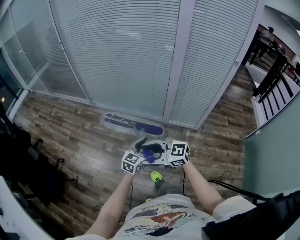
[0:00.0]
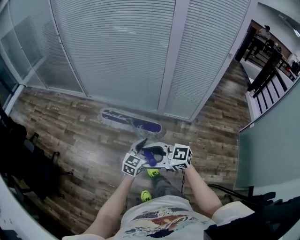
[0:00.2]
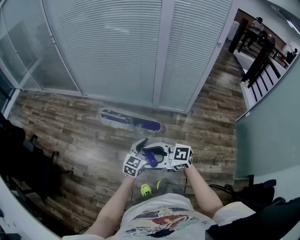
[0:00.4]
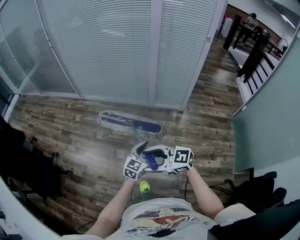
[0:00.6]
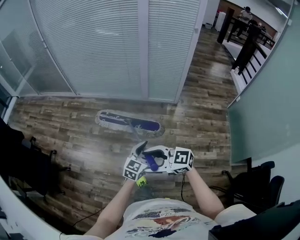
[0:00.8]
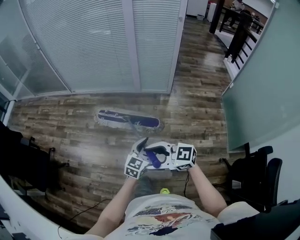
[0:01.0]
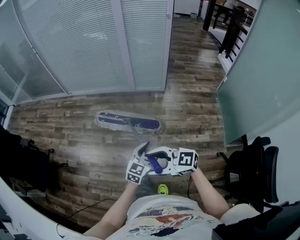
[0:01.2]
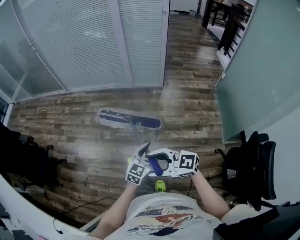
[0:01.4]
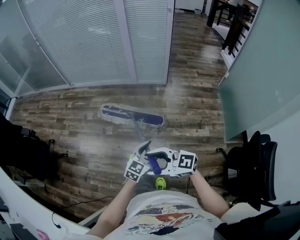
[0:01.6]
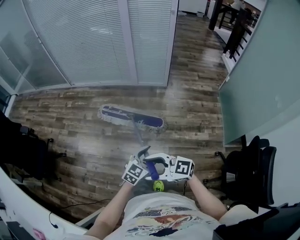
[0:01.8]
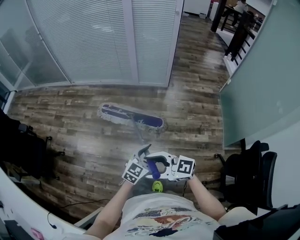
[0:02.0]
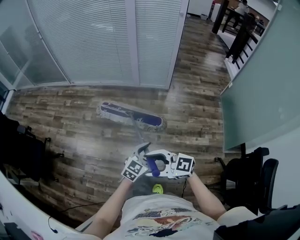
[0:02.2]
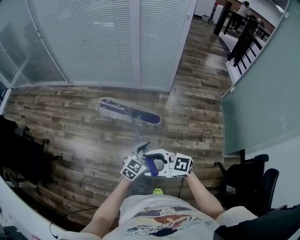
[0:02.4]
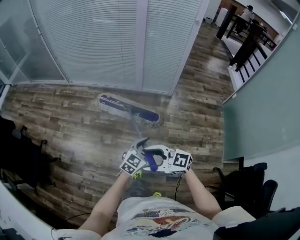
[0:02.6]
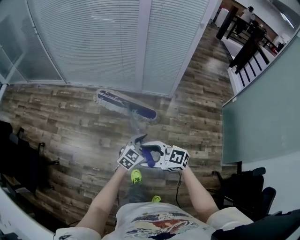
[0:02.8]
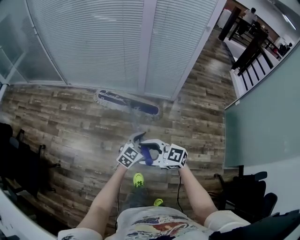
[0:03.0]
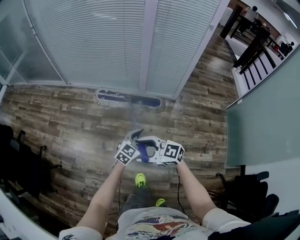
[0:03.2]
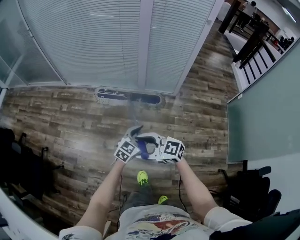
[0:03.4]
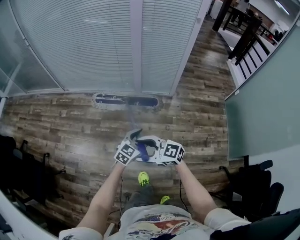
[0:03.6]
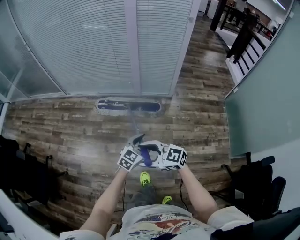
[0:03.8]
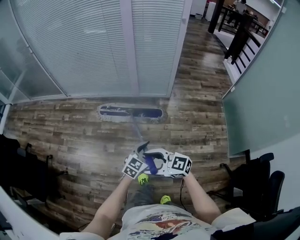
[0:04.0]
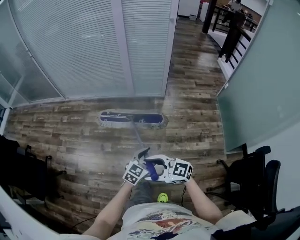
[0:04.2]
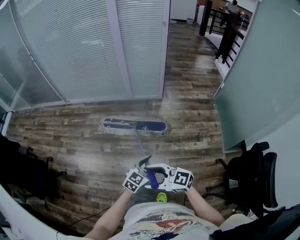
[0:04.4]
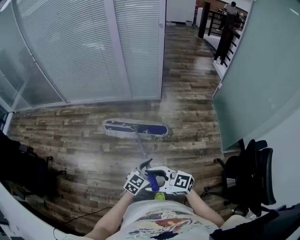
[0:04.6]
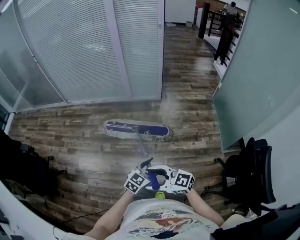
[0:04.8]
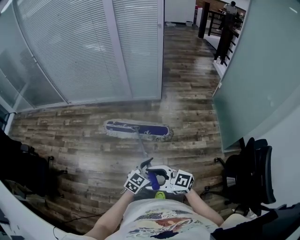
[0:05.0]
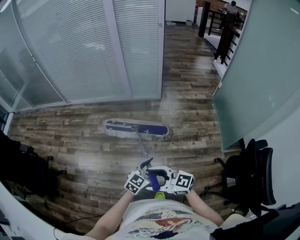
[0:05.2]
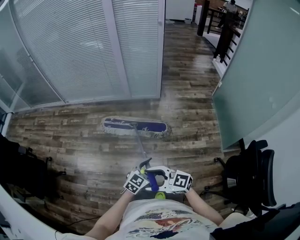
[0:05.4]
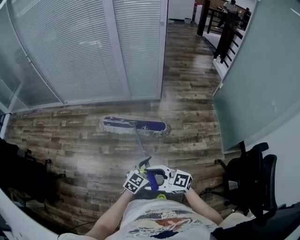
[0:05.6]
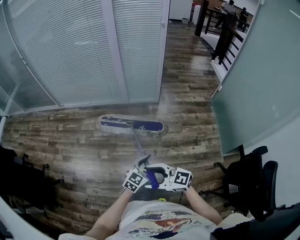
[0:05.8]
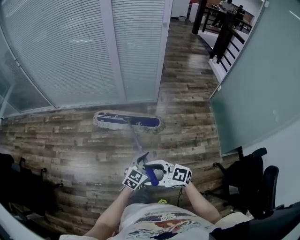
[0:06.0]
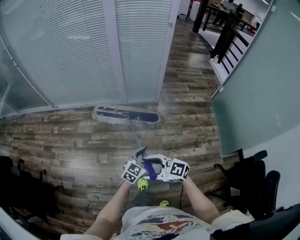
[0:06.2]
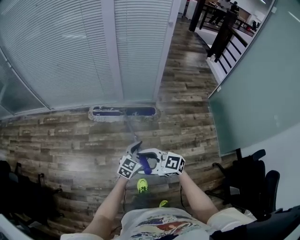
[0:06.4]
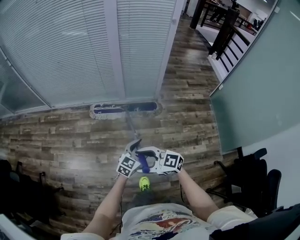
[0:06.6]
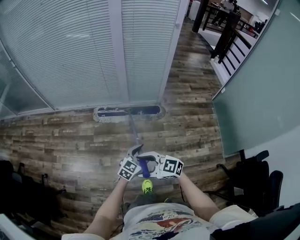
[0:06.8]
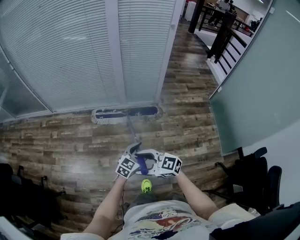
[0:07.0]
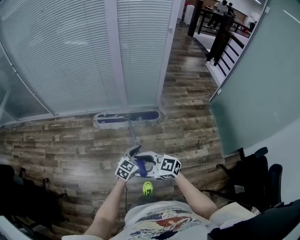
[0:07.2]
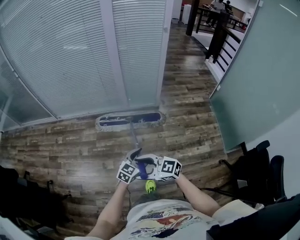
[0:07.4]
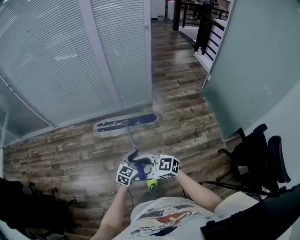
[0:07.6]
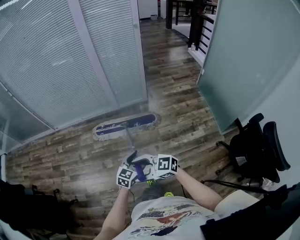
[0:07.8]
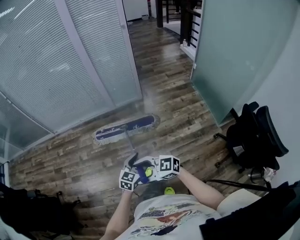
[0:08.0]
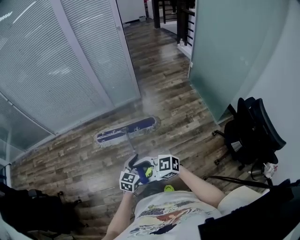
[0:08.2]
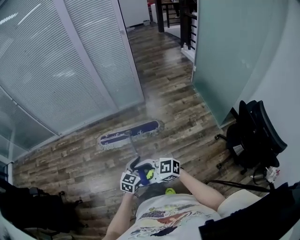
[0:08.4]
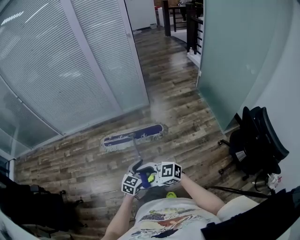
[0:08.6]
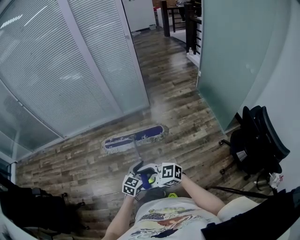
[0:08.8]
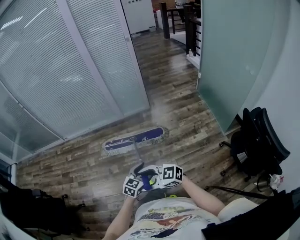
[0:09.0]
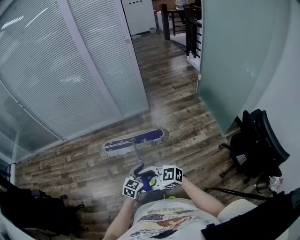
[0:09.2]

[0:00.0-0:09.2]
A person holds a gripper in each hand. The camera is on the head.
0:00.0 to 0:01.6: Both grippers are carried roughly 70 cm.
0:01.6 to 0:03.0: The pair of grippers is taken roughly 40 cm.
0:03.0 to 0:04.6: The pair of grippers is taken some 40 cm.
0:04.6 to 0:06.2: The right gripper shifts by roughly 35 cm; the left gripper ends up some 35 cm from where it was.
0:06.2 to 0:07.6: The right gripper ends up about 10 cm from where it was; the left gripper changes place by approximately 10 cm.
0:07.6 to 0:09.2: The right gripper changes place by about 25 cm; the left gripper changes place by approximately 25 cm.

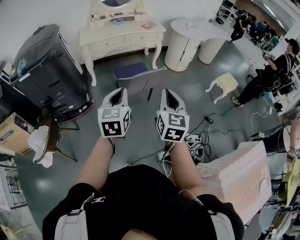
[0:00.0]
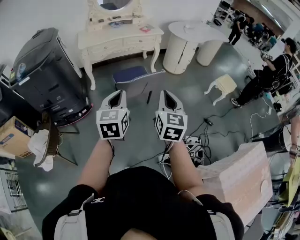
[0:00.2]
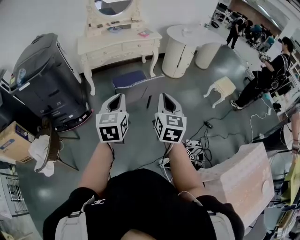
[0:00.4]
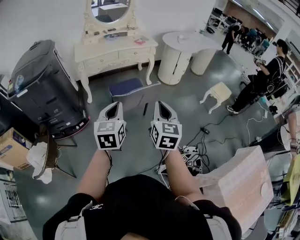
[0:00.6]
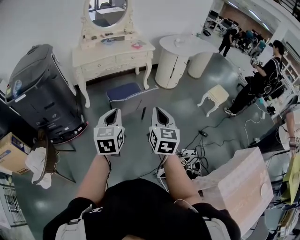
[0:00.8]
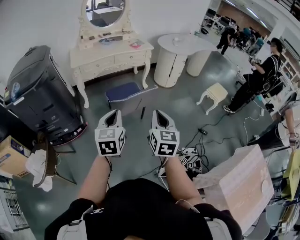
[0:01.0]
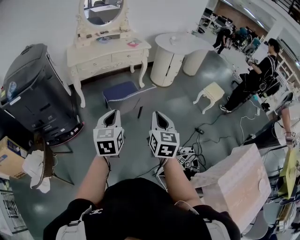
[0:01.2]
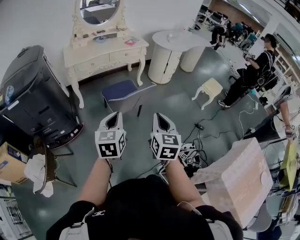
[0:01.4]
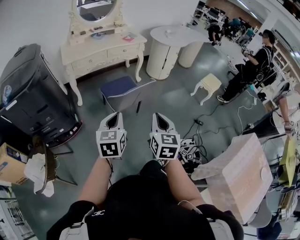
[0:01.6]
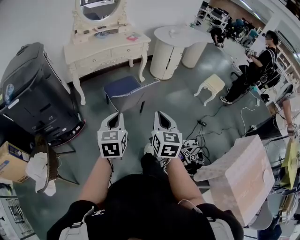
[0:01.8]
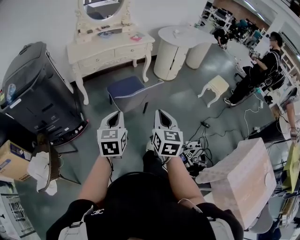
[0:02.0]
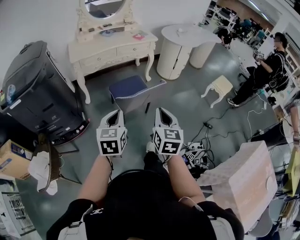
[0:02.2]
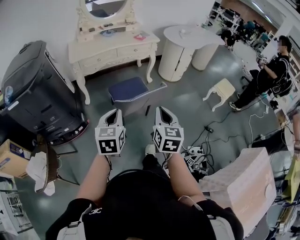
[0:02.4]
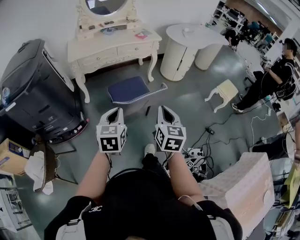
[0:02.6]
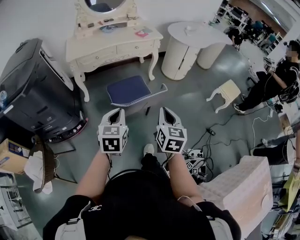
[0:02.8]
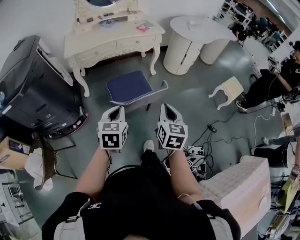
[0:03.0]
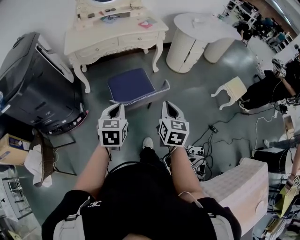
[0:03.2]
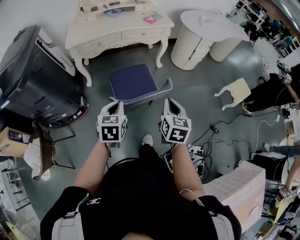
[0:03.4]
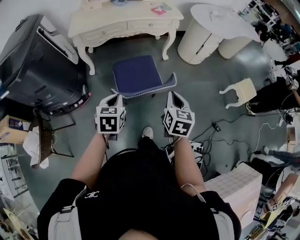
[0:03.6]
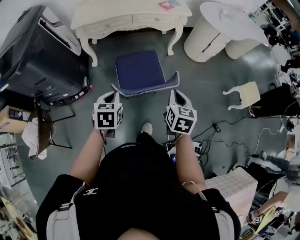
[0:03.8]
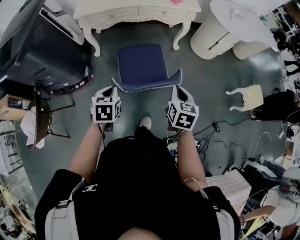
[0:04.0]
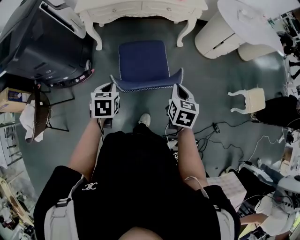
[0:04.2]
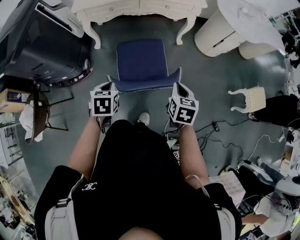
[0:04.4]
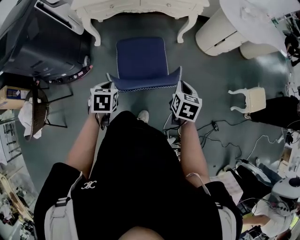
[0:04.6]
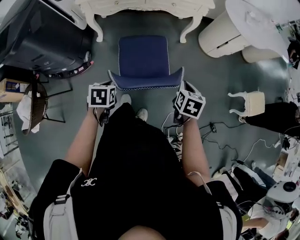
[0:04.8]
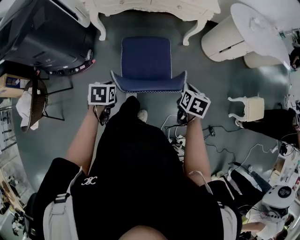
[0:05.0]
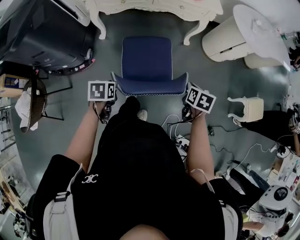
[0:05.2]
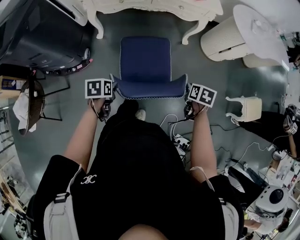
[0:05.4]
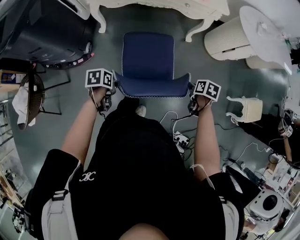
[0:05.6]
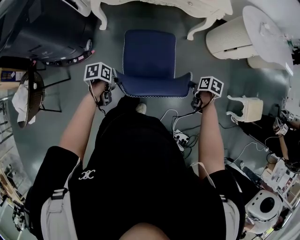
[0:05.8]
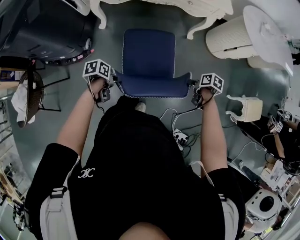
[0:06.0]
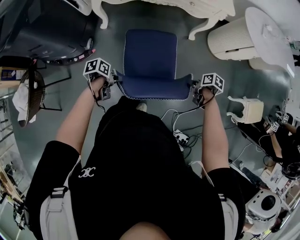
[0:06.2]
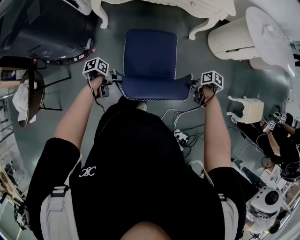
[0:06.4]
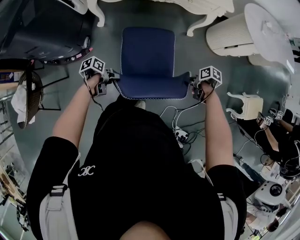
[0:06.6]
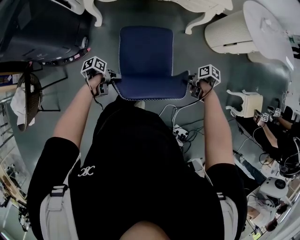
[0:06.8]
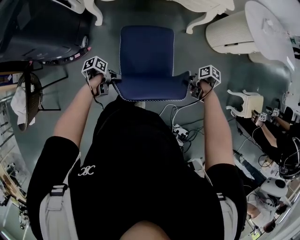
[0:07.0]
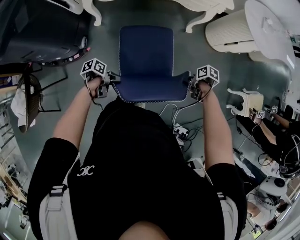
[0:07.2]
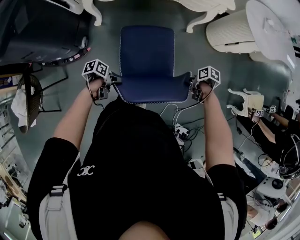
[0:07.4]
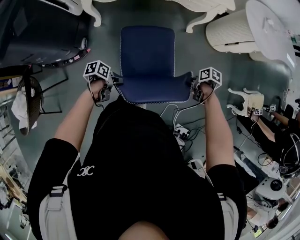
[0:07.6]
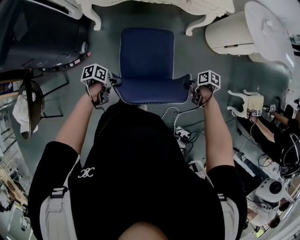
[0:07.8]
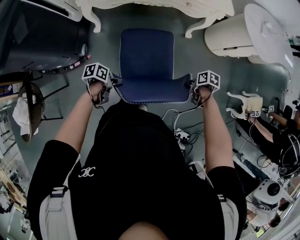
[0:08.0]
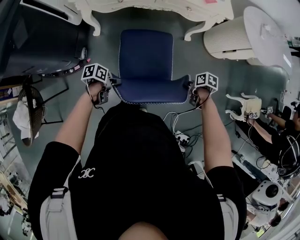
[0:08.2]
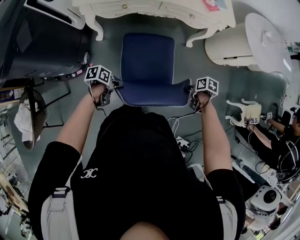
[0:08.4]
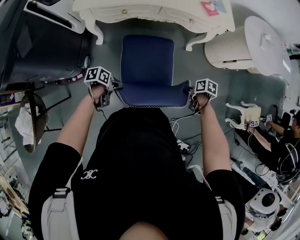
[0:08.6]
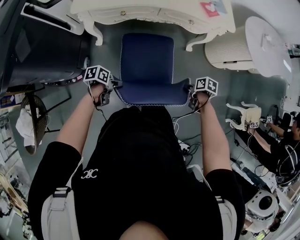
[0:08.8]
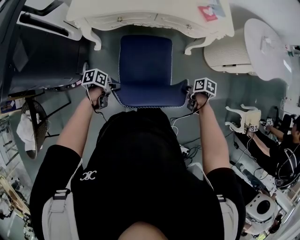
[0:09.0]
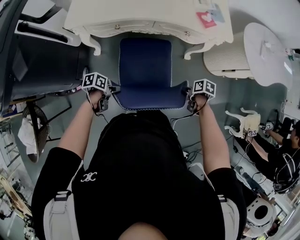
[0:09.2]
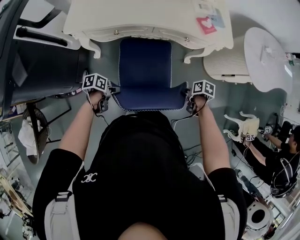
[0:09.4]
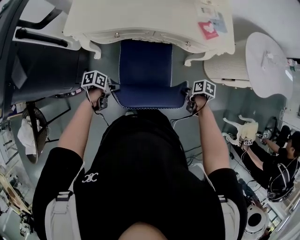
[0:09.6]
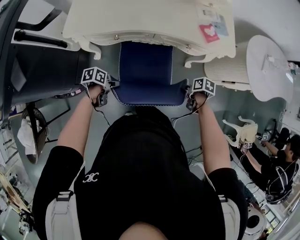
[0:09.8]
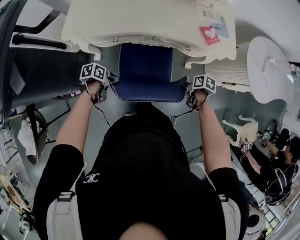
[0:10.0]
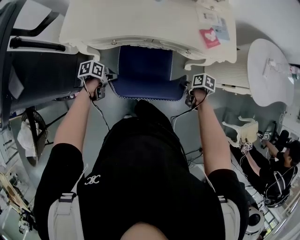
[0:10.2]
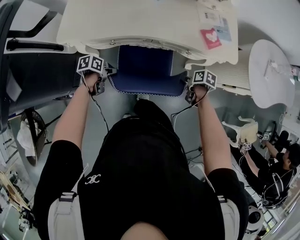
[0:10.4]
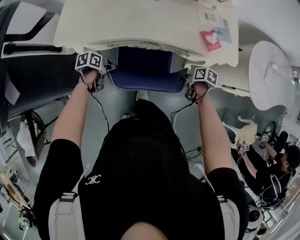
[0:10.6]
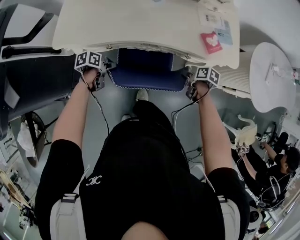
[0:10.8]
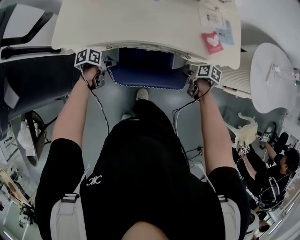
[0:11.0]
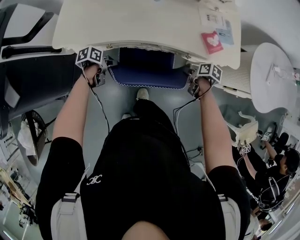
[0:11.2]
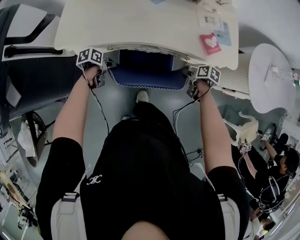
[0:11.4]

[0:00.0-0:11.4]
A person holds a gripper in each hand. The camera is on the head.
0:00.0 to 0:01.4: The right gripper moves about 5 cm.
0:01.4 to 0:02.8: The right gripper is displaced forward by approximately 15 cm, while the left gripper heads forward and downward, covering about 15 cm.
0:02.8 to 0:04.2: The right gripper shifts roughly 20 cm forward and downward, and swivels roughly 30 degrees; the left gripper is displaced downward and forward by roughly 20 cm, and swivels roughly 30 degrees.
0:04.2 to 0:05.6: The right gripper moves downward, forward and to the right, approximately 20 cm, and turns by roughly 40 degrees; the left gripper moves downward, about 15 cm, changes its angle by approximately 40 degrees, and opens.
0:05.6 to 0:07.2: The two grippers go roughly 5 cm downward. The right gripper turns by about 30 degrees. Meanwhile the left gripper turns by some 30 degrees.
0:07.2 to 0:08.6: The right gripper ends up approximately 10 cm from where it was; the left gripper shifts by roughly 15 cm.
0:08.6 to 0:10.0: The right gripper shifts by about 20 cm. The left gripper shifts by some 20 cm.
0:10.0 to 0:11.4: The right gripper moves some 10 cm; the left gripper ends up some 15 cm from where it was.

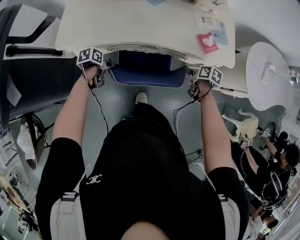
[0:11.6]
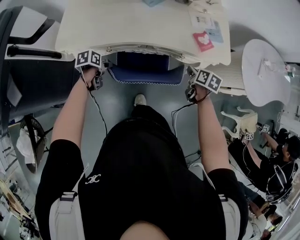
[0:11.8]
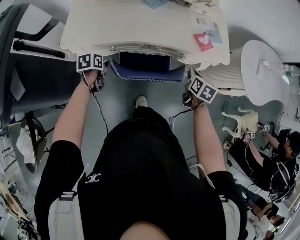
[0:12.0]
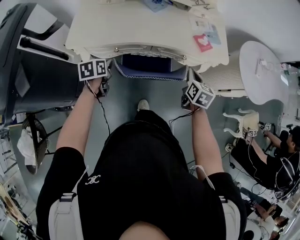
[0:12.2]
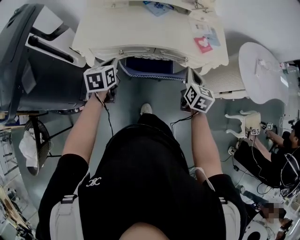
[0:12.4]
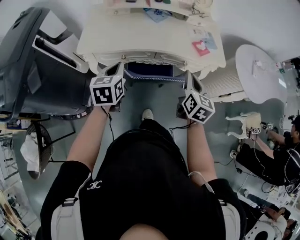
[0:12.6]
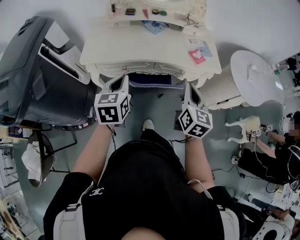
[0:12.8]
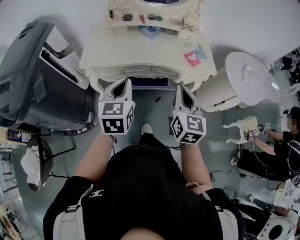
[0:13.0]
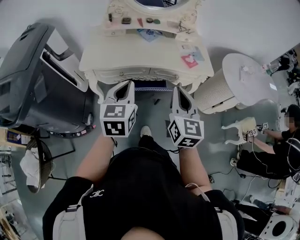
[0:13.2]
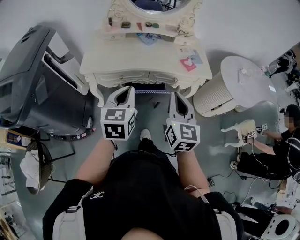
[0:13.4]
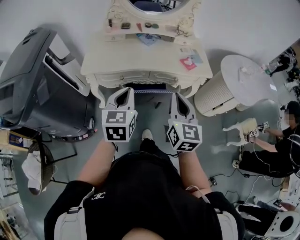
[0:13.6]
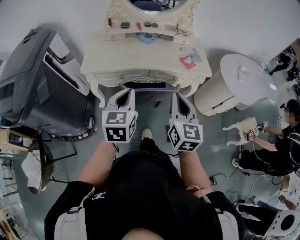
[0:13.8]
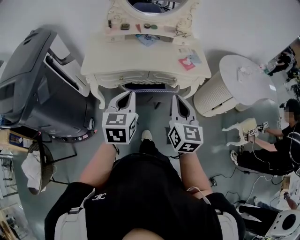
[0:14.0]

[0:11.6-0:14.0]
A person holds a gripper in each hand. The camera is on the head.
0:11.6 to 0:12.8: The right gripper goes about 35 cm upward and backward, angles its fingers upward, by about 50 degrees, and closes its fingers; the left gripper heads upward, covering about 30 cm, points its fingers approximately 30 degrees further upward, and closes up.
0:12.8 to 0:14.0: The left gripper travels backward and to the right by some 10 cm. The right gripper is displaced backward by about 10 cm.
